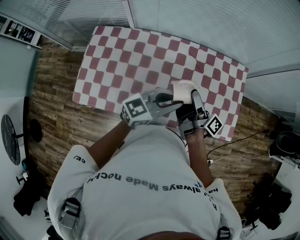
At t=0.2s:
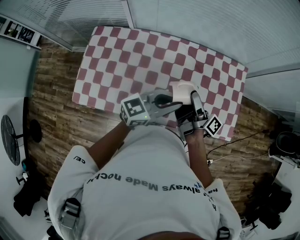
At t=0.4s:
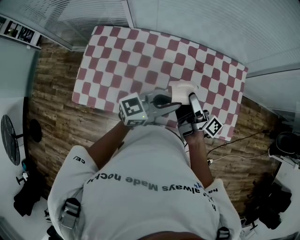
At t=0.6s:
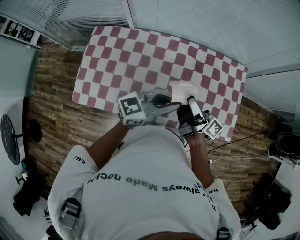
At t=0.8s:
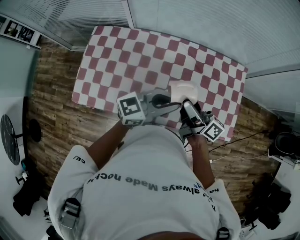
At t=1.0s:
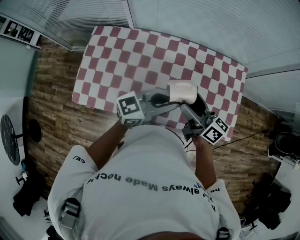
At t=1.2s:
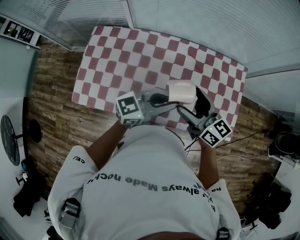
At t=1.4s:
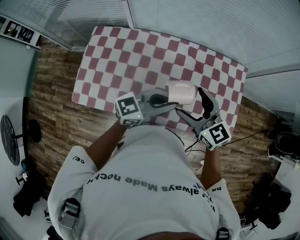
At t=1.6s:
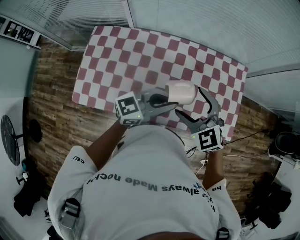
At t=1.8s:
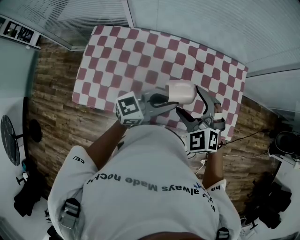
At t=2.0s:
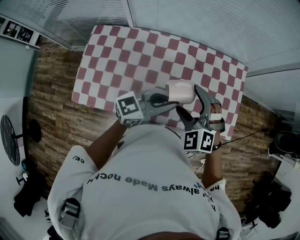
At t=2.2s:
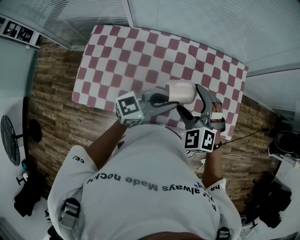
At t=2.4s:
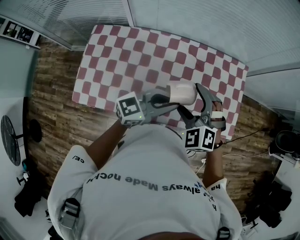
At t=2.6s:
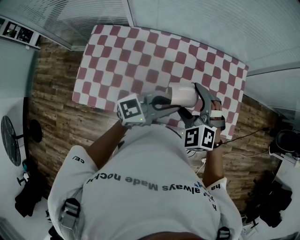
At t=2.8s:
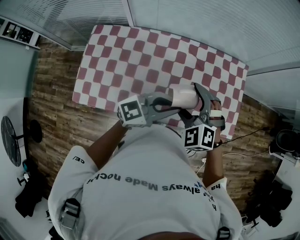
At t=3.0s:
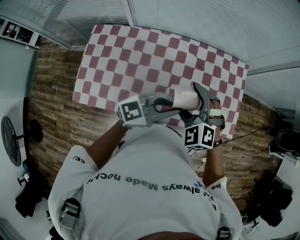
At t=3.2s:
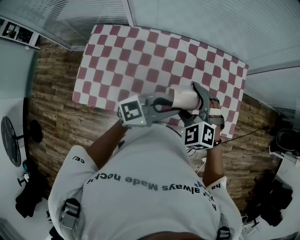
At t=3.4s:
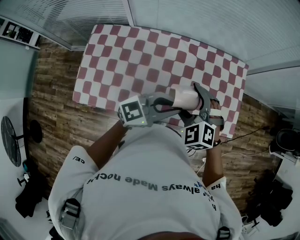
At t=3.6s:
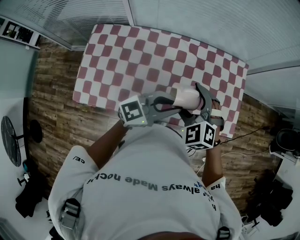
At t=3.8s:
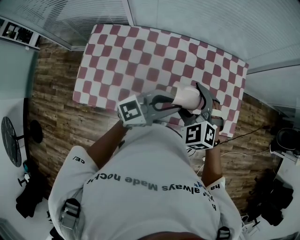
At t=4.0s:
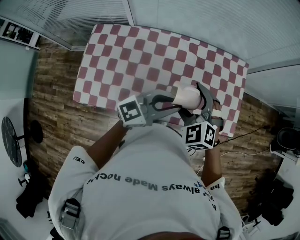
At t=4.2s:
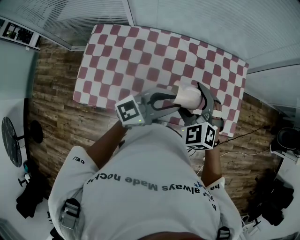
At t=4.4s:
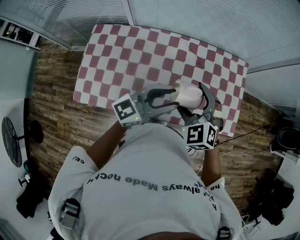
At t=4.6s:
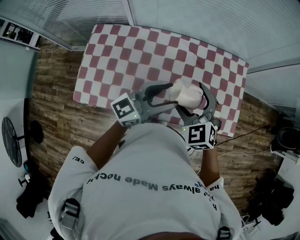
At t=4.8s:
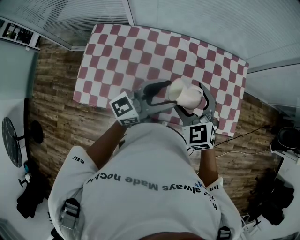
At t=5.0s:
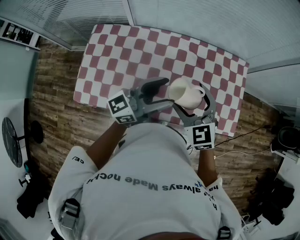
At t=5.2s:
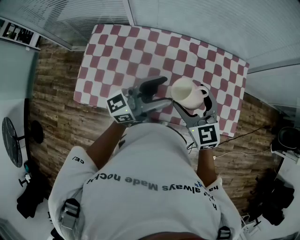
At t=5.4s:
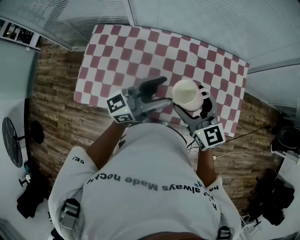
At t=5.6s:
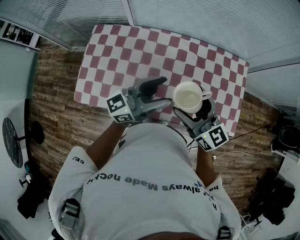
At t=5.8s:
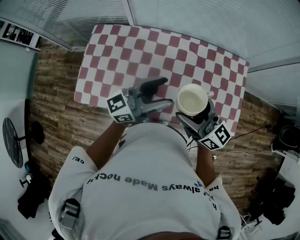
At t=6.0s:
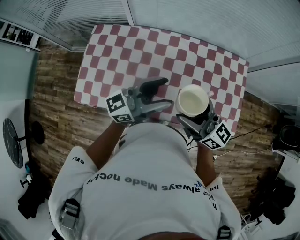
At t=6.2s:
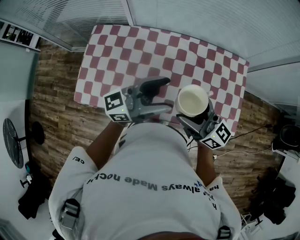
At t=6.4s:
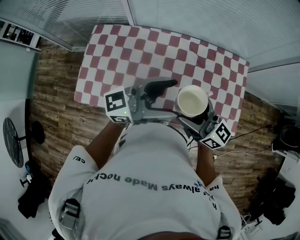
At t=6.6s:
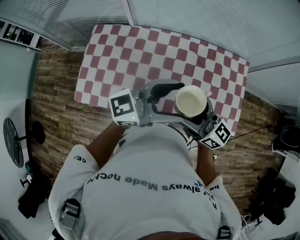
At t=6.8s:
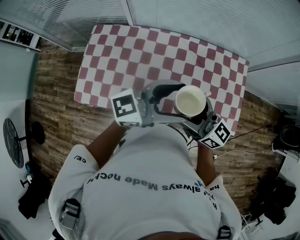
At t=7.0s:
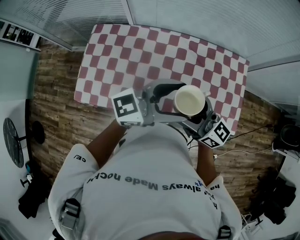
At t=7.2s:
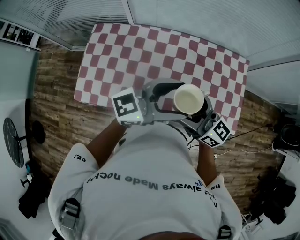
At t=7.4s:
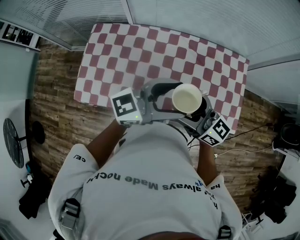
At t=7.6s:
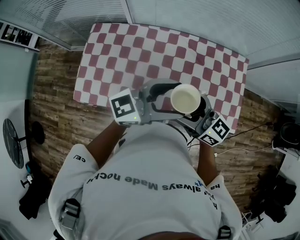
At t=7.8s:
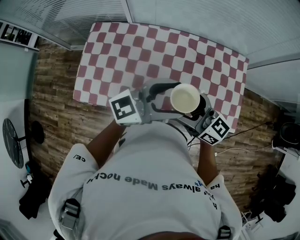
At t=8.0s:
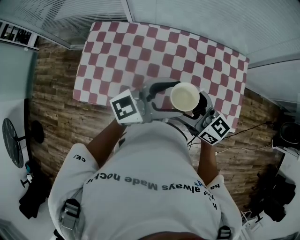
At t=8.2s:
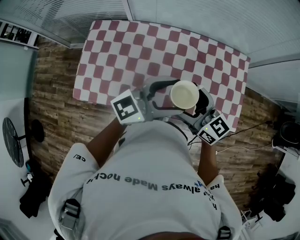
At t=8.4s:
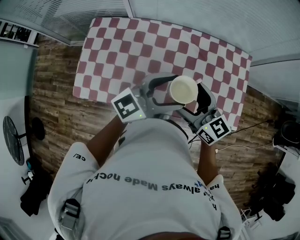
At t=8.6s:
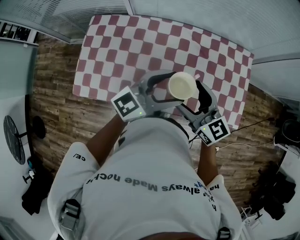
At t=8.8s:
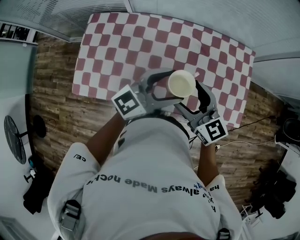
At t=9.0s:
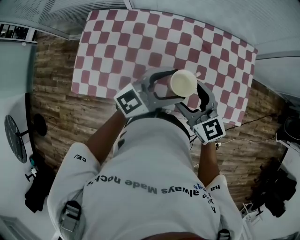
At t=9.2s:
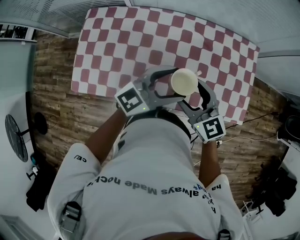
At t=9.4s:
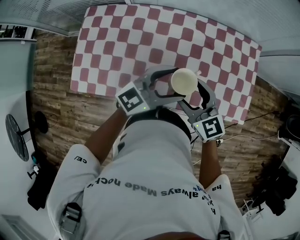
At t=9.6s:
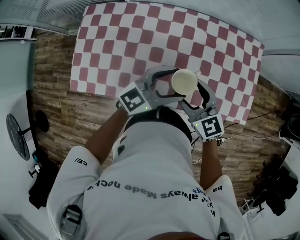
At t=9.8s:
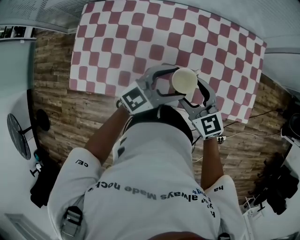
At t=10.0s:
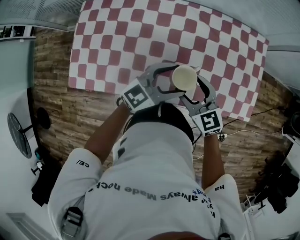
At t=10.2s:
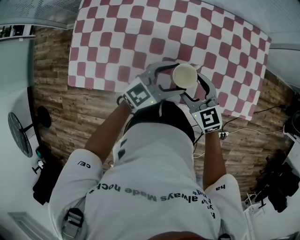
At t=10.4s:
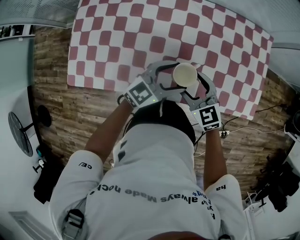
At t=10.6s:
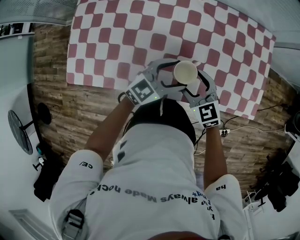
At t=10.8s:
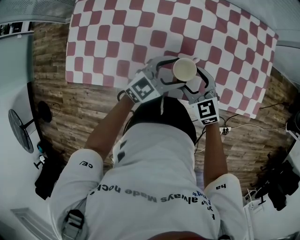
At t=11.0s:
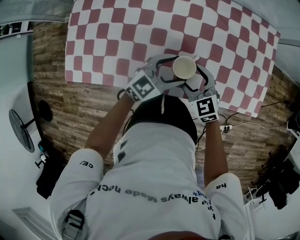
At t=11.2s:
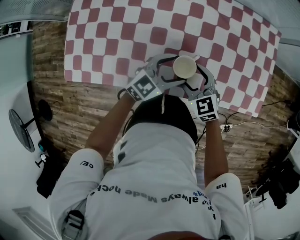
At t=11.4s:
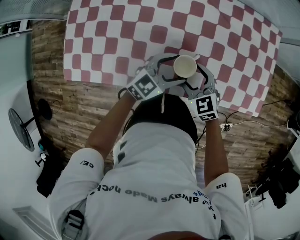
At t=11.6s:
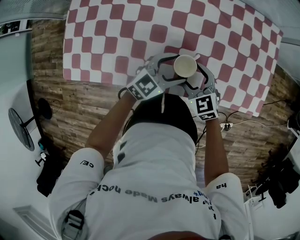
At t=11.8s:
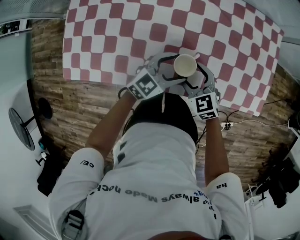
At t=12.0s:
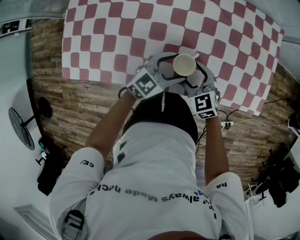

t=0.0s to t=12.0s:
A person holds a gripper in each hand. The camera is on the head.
t=0.0s to t=1.6s: The right gripper is displaced backward by about 5 cm, and twists about 110 degrees counterclockwise, seen from behind.
t=1.6s to t=3.0s: The right gripper rotates roughly 20 degrees.
t=3.0s to t=4.4s: The left gripper opens its fingers.
t=4.4s to t=6.0s: The right gripper moves upward, roughly 5 cm, and angles its fingers upward, by some 50 degrees.
t=6.0s to t=7.6s: The left gripper moves approximately 5 cm.
t=7.6s to t=9.0s: Both grippers travel together downward, approximately 10 cm. The right gripper turns by about 30 degrees.
t=9.0s to t=10.4s: Both grippers move downward, approximately 15 cm.
t=10.4s to t=12.0s: The two grippers go roughly 10 cm downward.

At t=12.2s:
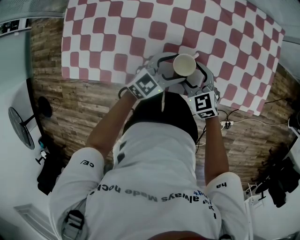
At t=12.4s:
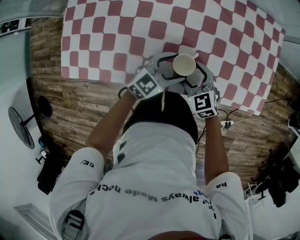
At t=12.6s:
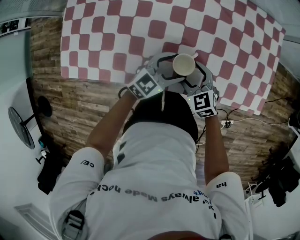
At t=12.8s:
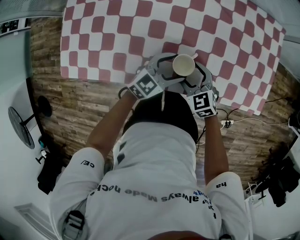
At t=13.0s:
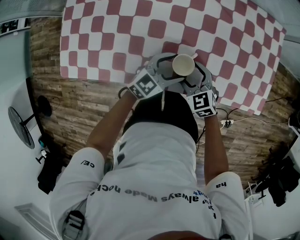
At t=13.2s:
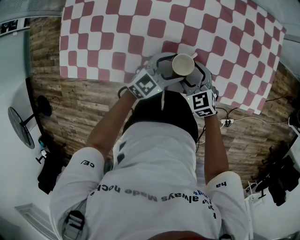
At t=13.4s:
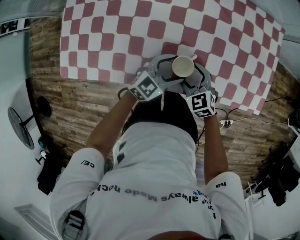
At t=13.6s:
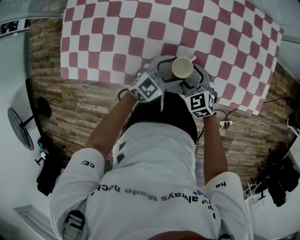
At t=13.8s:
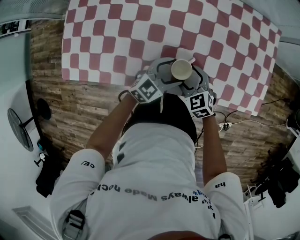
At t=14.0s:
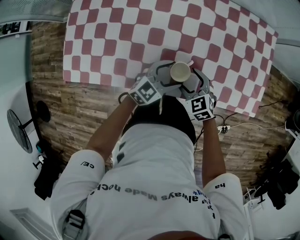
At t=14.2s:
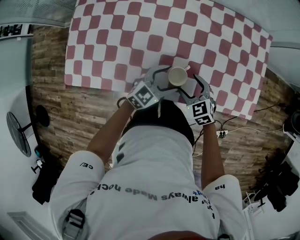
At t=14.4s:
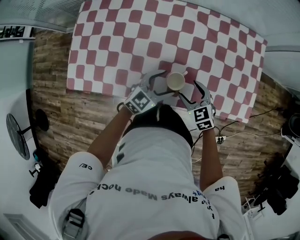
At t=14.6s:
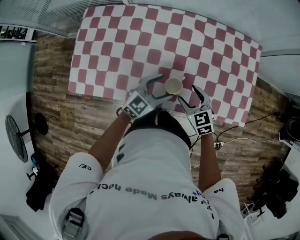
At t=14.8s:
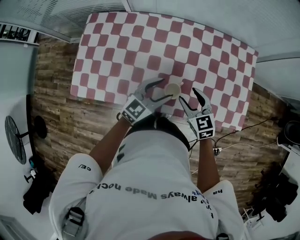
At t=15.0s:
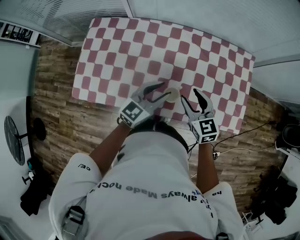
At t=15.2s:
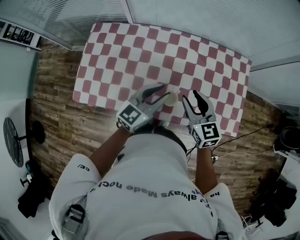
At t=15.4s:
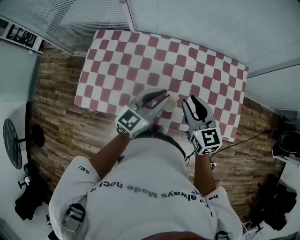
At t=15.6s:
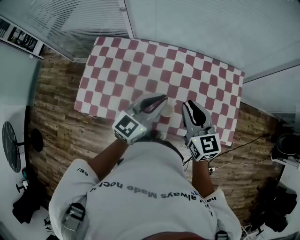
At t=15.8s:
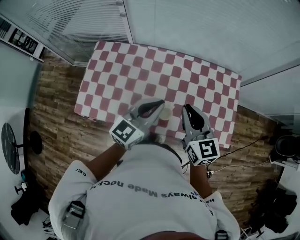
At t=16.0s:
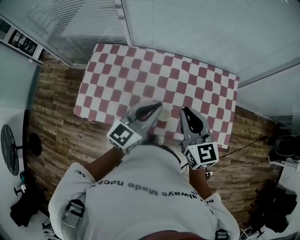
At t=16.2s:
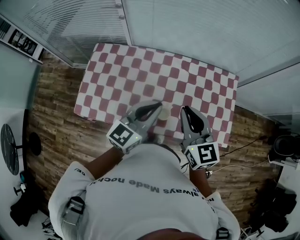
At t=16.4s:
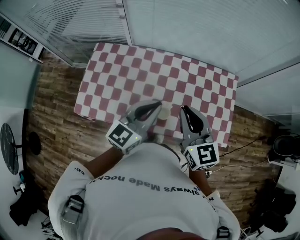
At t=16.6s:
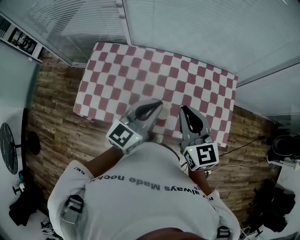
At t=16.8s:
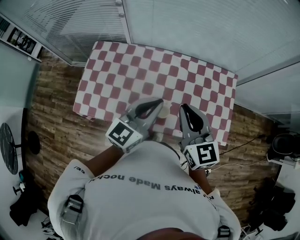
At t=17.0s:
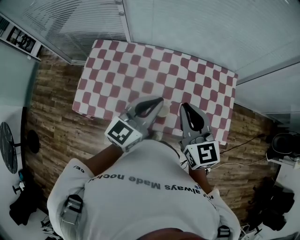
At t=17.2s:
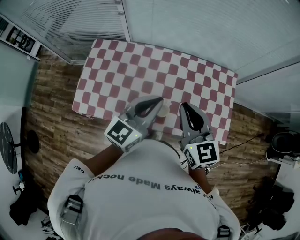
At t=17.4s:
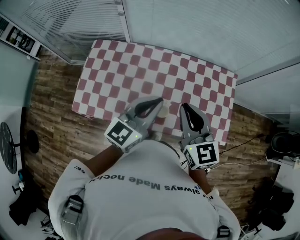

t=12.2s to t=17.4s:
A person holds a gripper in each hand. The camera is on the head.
t=12.2s to t=14.0s: There are only small adjustments of the grippers.
t=14.0s to t=15.6s: The grippers both shift upward by some 35 cm. The right gripper changes its angle by roughly 30 degrees, and closes up; the left gripper rotates approximately 30 degrees, and closes.
t=15.6s to t=17.4s: Both grippers travel together upward, some 5 cm.

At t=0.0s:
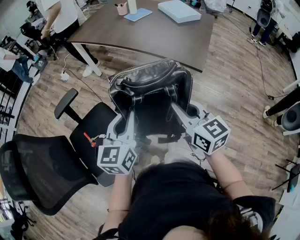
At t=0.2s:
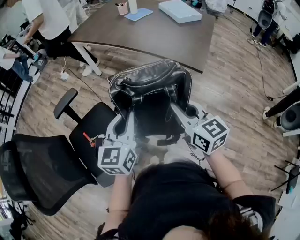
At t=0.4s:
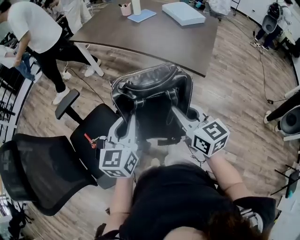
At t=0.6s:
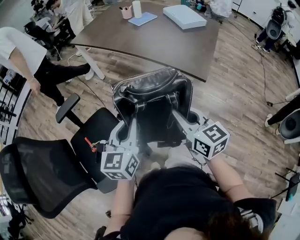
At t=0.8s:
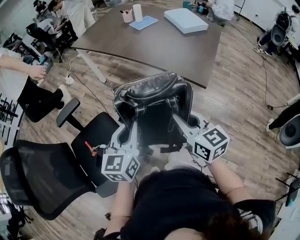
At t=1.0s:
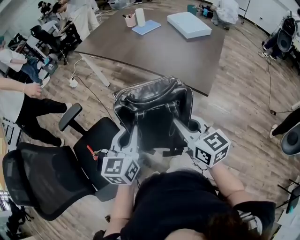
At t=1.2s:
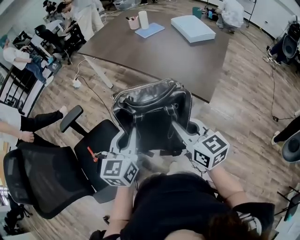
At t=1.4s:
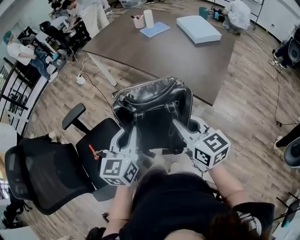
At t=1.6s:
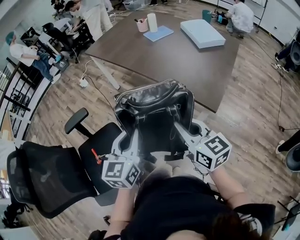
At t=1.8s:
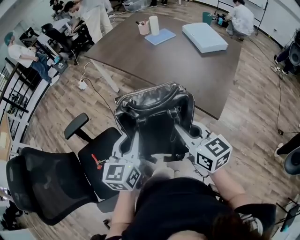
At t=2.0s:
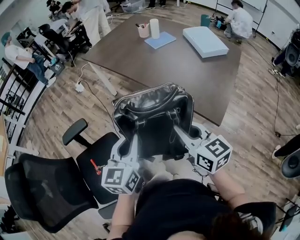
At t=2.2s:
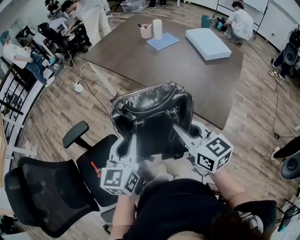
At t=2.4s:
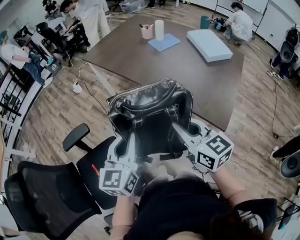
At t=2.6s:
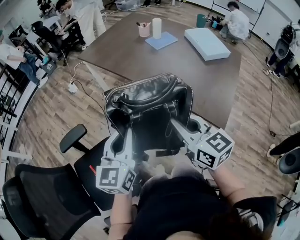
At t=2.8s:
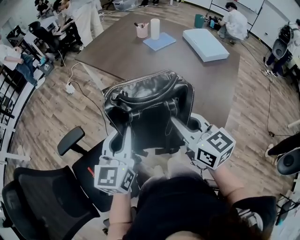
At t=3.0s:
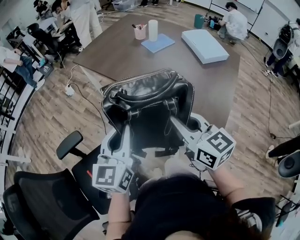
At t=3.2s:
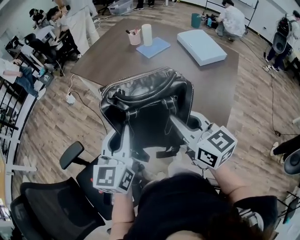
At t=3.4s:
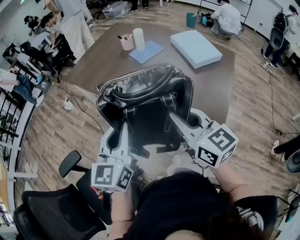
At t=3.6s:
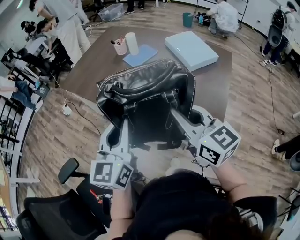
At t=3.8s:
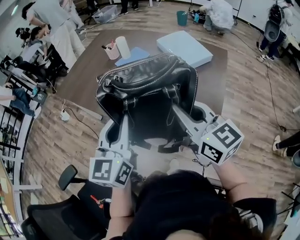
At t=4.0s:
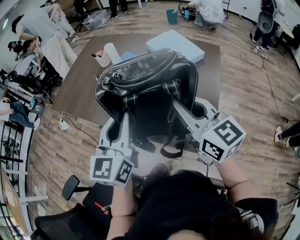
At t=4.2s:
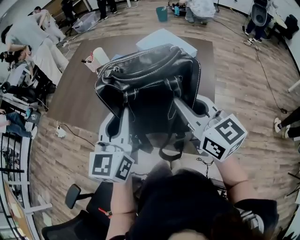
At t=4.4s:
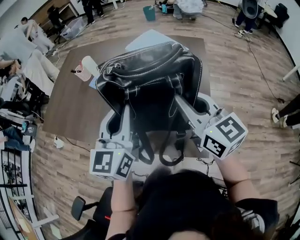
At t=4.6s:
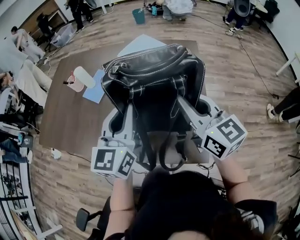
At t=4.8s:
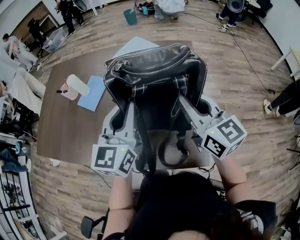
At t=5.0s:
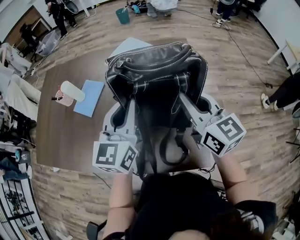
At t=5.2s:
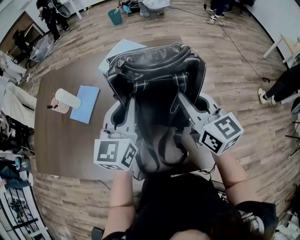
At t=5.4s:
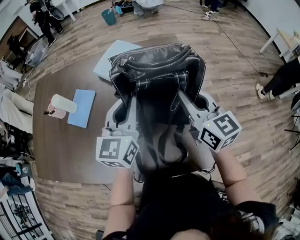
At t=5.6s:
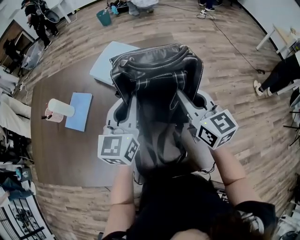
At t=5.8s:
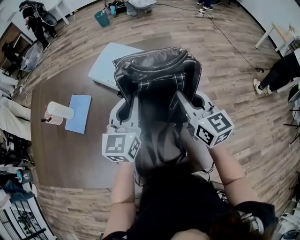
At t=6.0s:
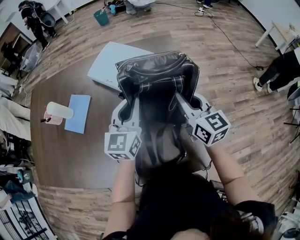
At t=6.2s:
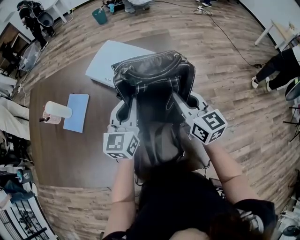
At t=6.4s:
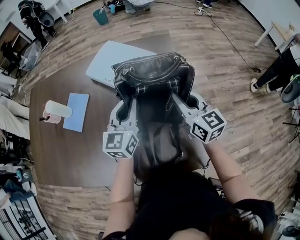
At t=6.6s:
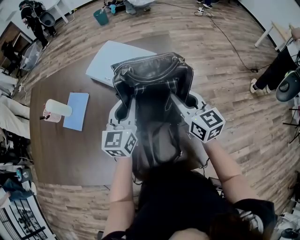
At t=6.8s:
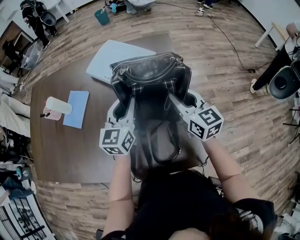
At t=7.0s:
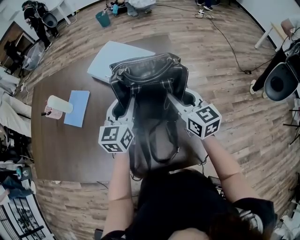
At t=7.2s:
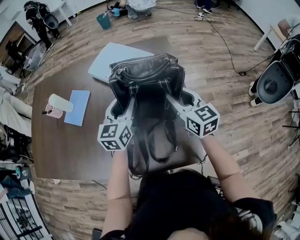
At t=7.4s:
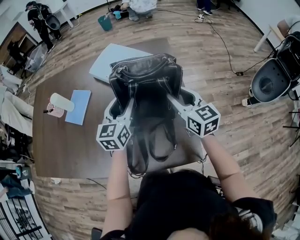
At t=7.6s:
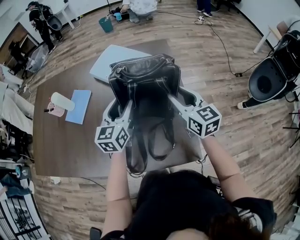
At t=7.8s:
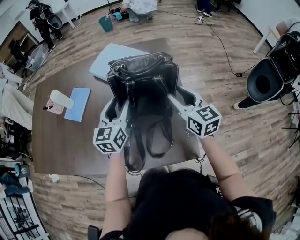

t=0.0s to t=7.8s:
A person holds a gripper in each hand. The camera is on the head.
t=0.0s to t=1.6s: Both grippers travel together forward, some 15 cm.
t=1.6s to t=3.2s: The grippers both shift forward by some 20 cm.
t=3.2s to t=4.6s: The right gripper shifts by some 35 cm, and turns by some 30 degrees. Meanwhile the left gripper shifts by about 40 cm, and turns by some 30 degrees.
t=4.6s to t=6.2s: The two grippers go approximately 20 cm forward, downward and to the right.
t=6.2s to t=7.8s: Both grippers move backward, about 5 cm. The right gripper opens its fingers, while the left gripper opens.
